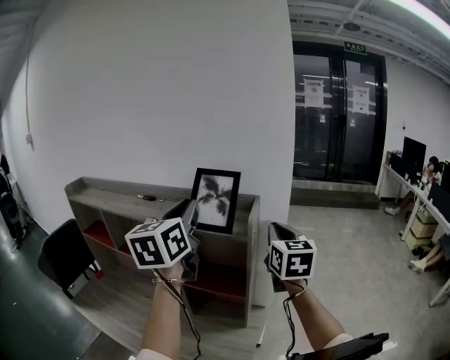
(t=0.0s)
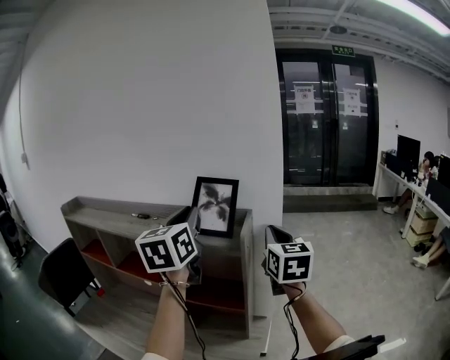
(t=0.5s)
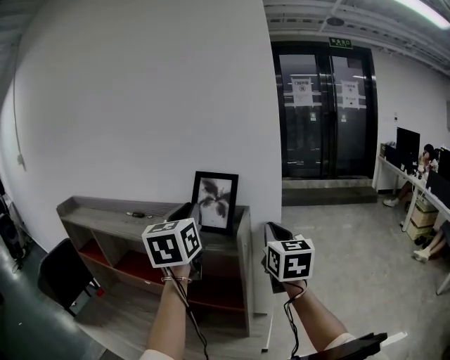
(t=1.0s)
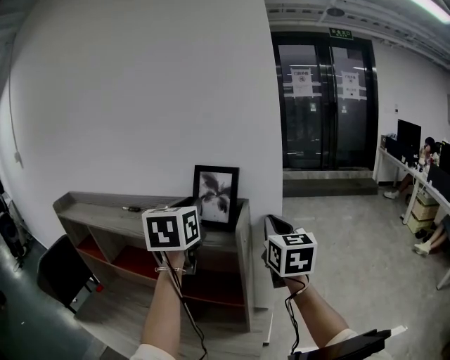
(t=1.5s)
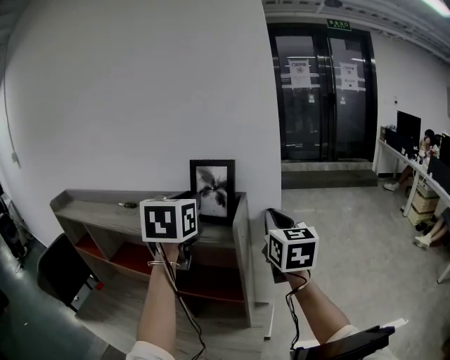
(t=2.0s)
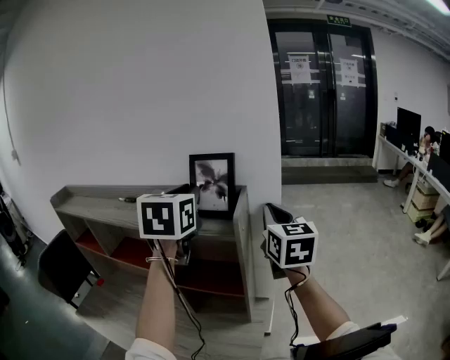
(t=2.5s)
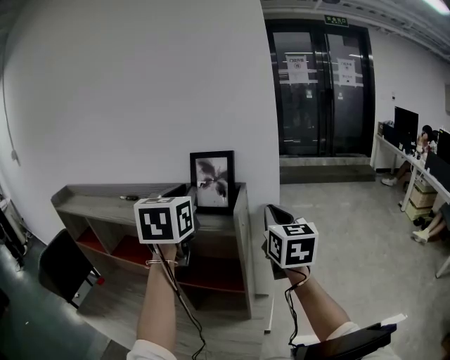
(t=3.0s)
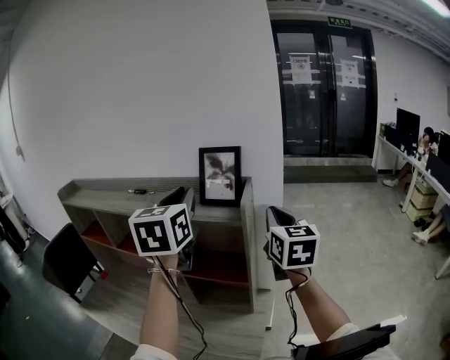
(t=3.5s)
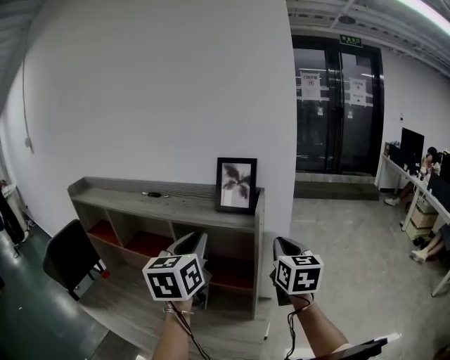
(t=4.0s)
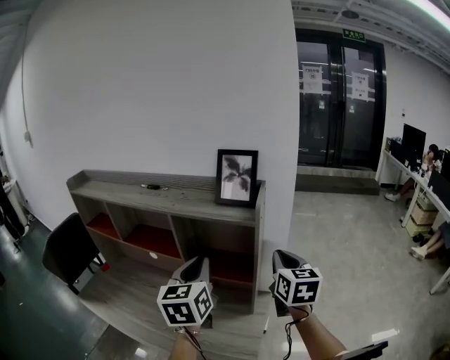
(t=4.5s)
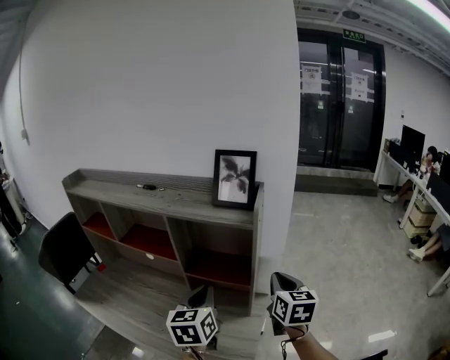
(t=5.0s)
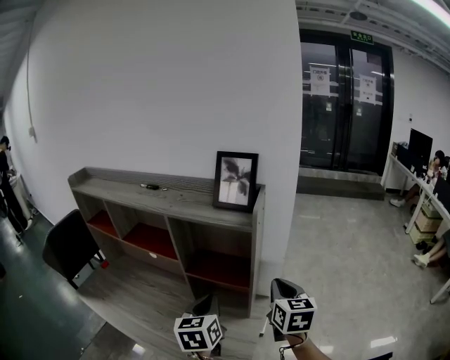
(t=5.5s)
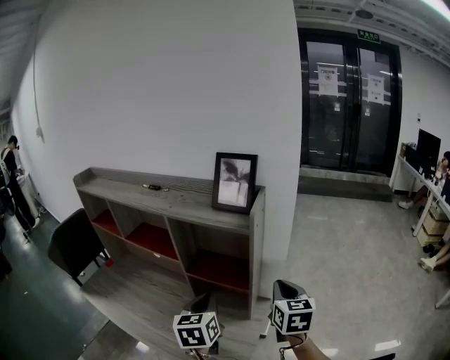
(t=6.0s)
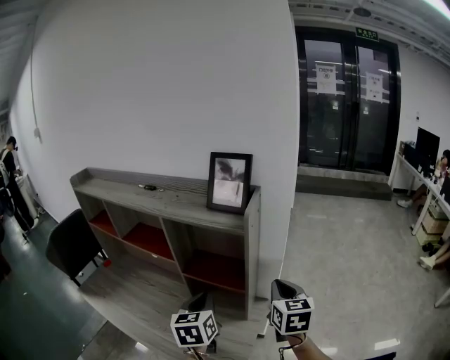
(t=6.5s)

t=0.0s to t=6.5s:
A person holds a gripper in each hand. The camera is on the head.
t=0.0s to t=2.0s: The left gripper shifts about 10 cm forward, and swivels about 20 degrees.
t=2.0s to t=4.5s: The two grippers go approximately 20 cm backward and downward.
t=4.5s to t=6.5s: The left gripper heads downward, covering some 15 cm; the right gripper travels downward by some 10 cm.

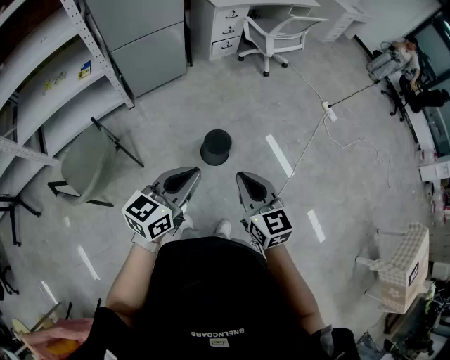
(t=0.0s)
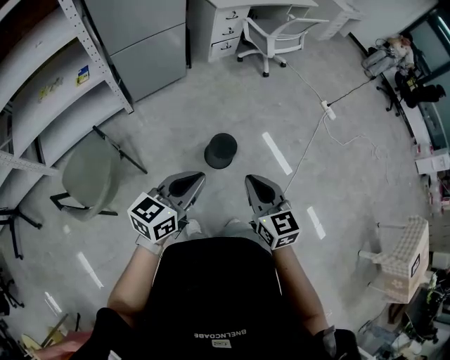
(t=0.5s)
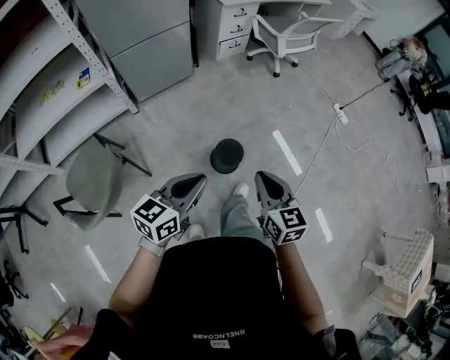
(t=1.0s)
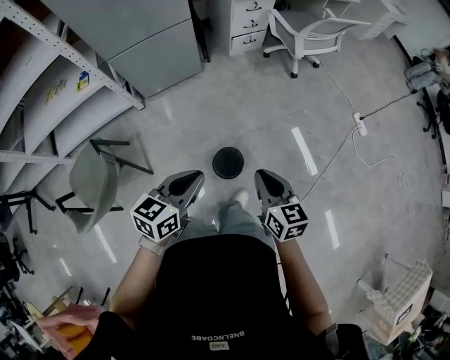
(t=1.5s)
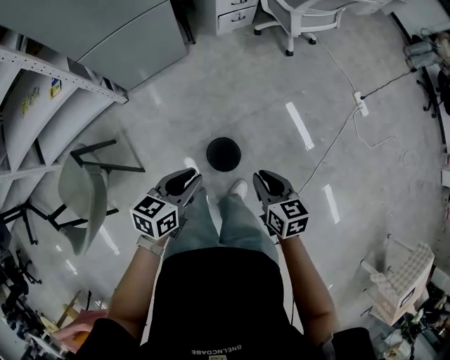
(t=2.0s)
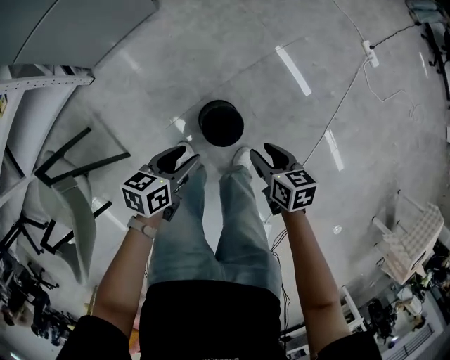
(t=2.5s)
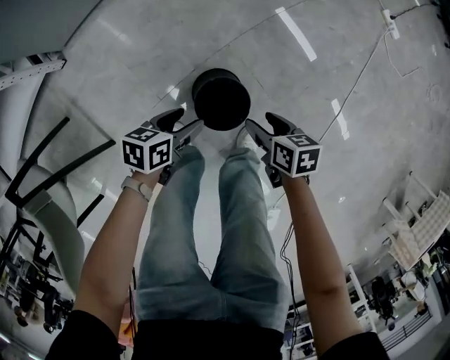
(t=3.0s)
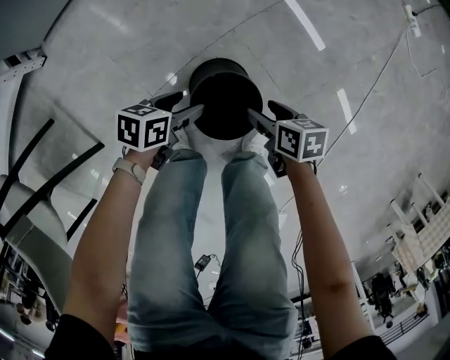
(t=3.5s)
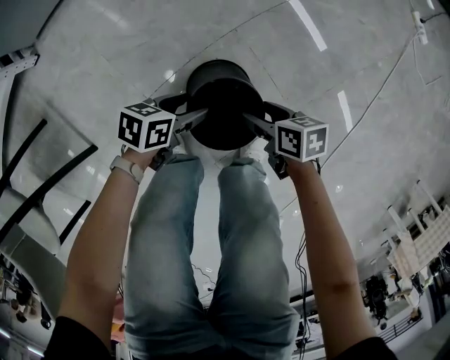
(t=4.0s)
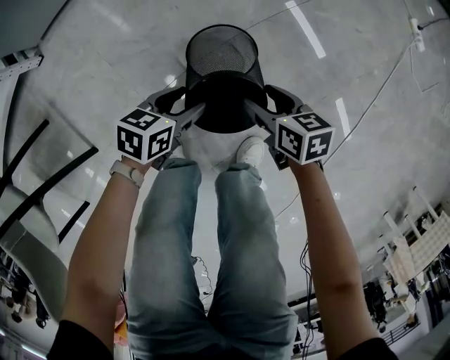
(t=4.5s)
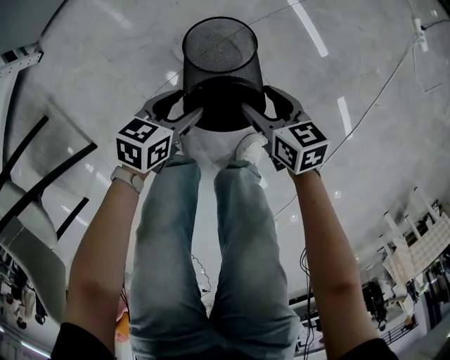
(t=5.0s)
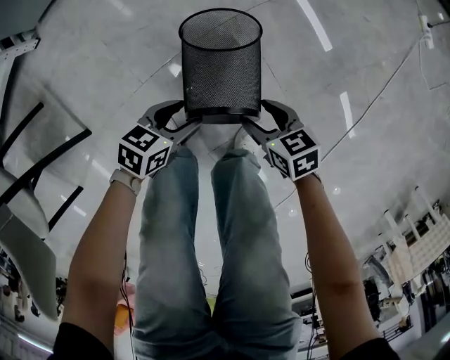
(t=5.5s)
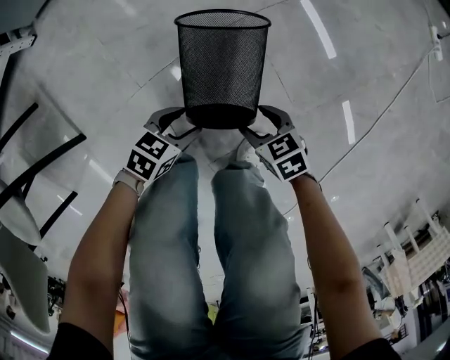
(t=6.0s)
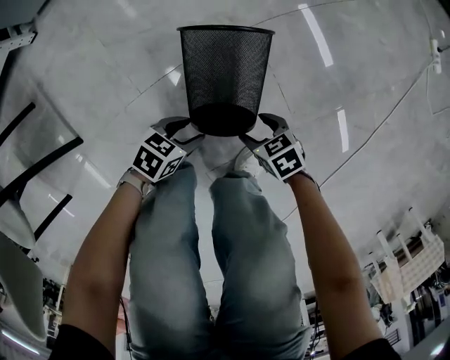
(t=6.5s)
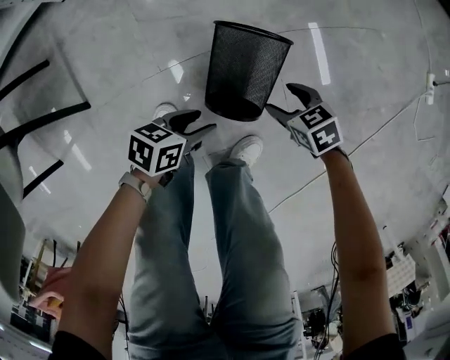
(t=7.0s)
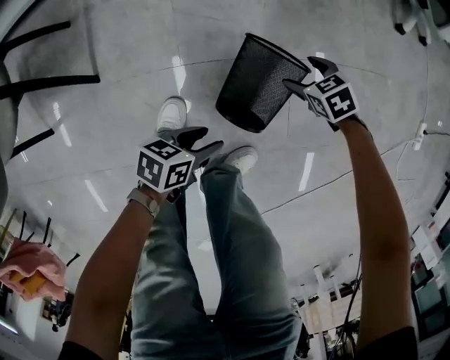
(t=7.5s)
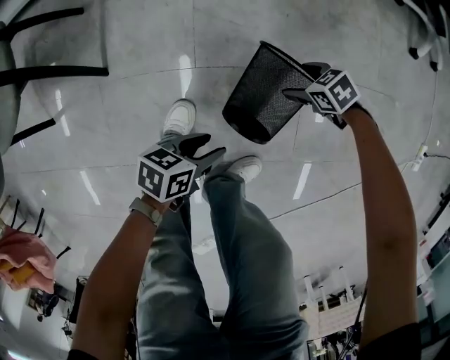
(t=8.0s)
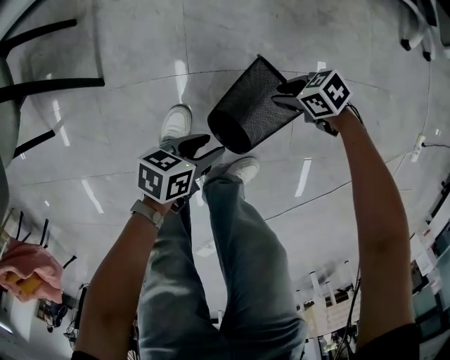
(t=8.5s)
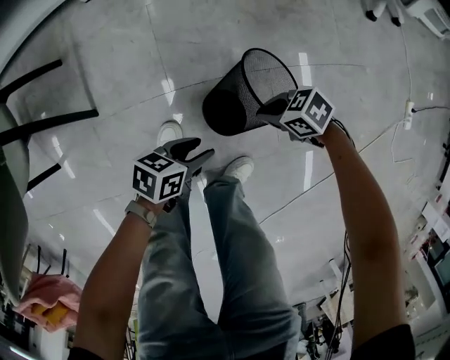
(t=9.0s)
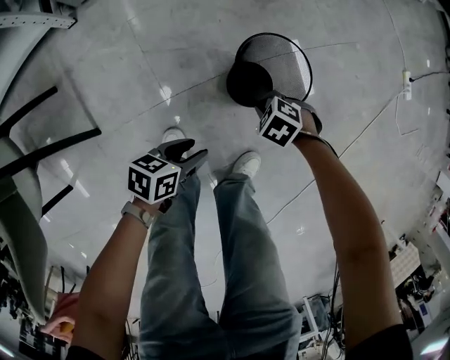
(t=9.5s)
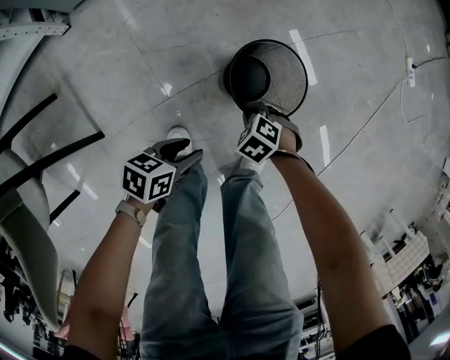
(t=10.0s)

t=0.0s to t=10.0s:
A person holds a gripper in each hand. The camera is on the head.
t=0.0s to t=2.0s: The grippers both shift forward and downward by roughly 35 cm. The left gripper swivels roughly 30 degrees. The right gripper turns by approximately 30 degrees.
t=2.0s to t=4.0s: The grippers both shift downward by some 60 cm. The left gripper changes its angle by some 40 degrees, and opens up. Meanwhile the right gripper changes its angle by approximately 30 degrees, and opens.
t=4.0s to t=6.0s: The left gripper moves about 10 cm. Meanwhile the right gripper goes approximately 5 cm downward, and changes its angle by about 40 degrees.
t=6.0s to t=8.0s: The right gripper reaches roughly 5 cm upward, then returns, and turns by approximately 50 degrees; the left gripper moves upward, approximately 10 cm, and twists some 40 degrees counterclockwise, seen from behind.
t=8.0s to t=10.0s: The left gripper shifts by roughly 5 cm, and rotates roughly 30 degrees. Meanwhile the right gripper changes place by approximately 15 cm, changes its angle by roughly 30 degrees, and closes its fingers.

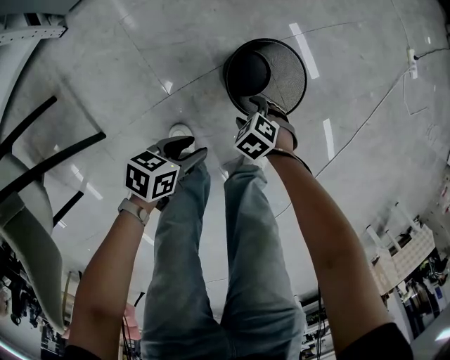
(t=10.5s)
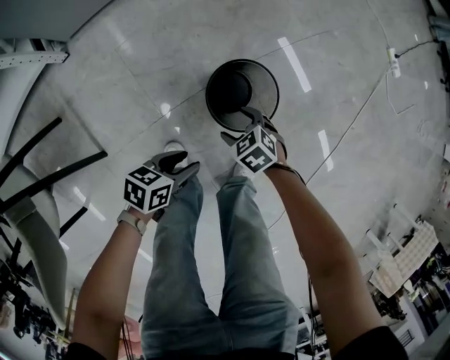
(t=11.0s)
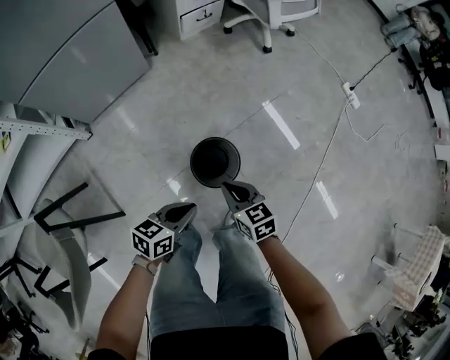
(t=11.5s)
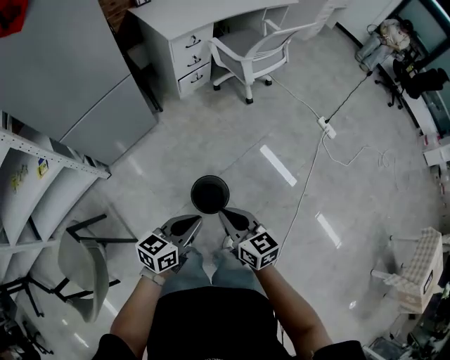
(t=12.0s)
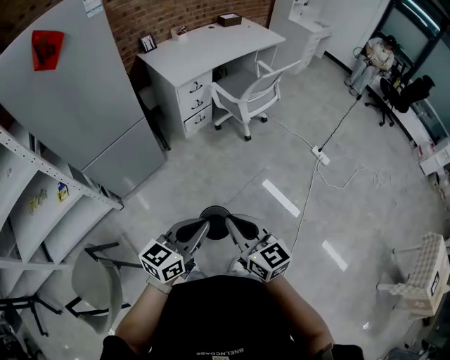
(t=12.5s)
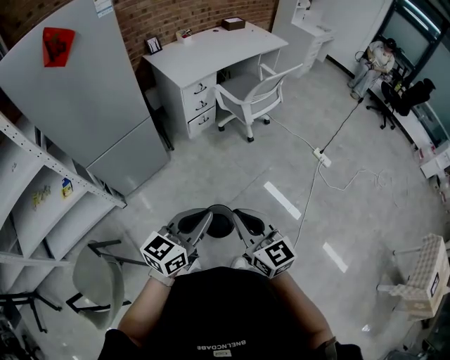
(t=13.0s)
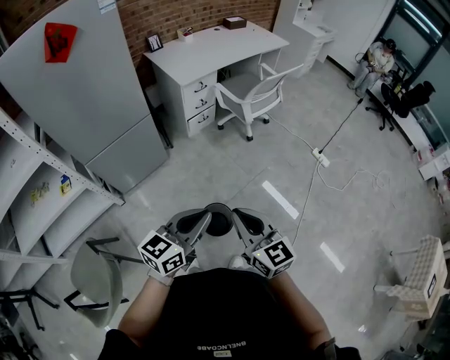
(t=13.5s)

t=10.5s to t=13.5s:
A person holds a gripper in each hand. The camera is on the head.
t=10.5s to t=12.0s: The two grippers go approximately 50 cm upward. The left gripper changes its angle by about 40 degrees, and closes; the right gripper tilts its fingers roughly 60 degrees upward, and closes its fingers.
t=12.0s to t=13.5s: The two grippers go approximately 20 cm upward. The right gripper turns by some 20 degrees.

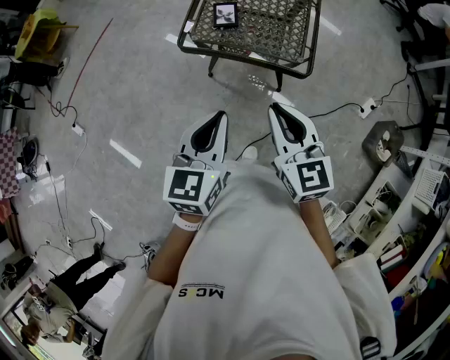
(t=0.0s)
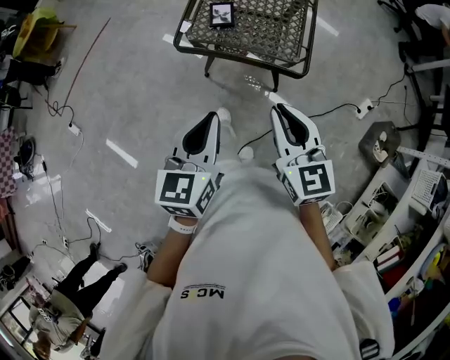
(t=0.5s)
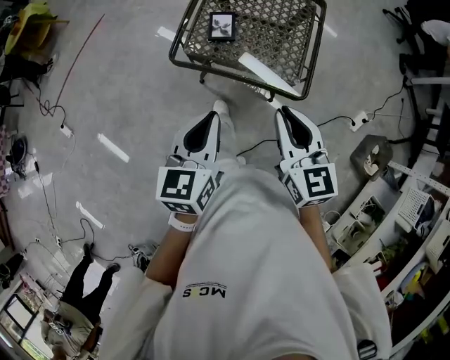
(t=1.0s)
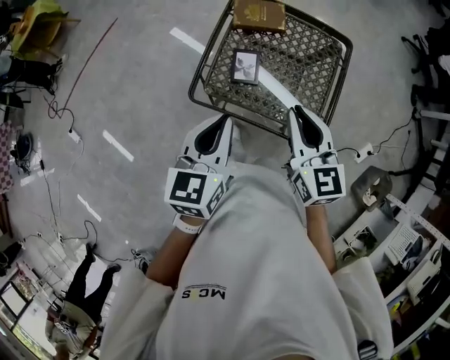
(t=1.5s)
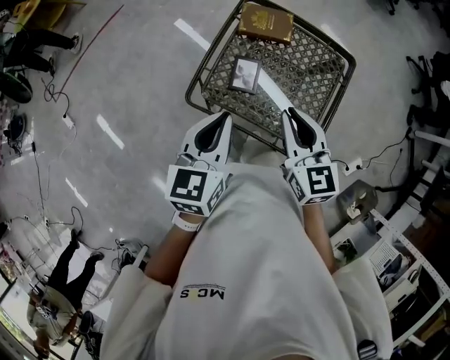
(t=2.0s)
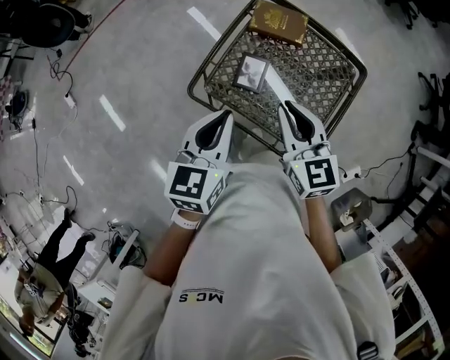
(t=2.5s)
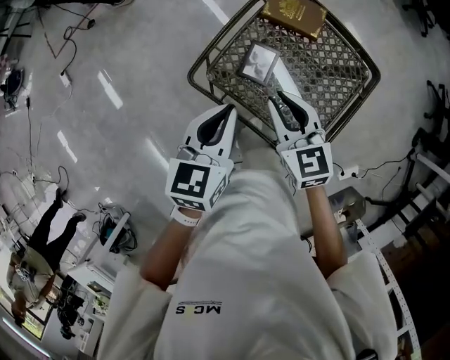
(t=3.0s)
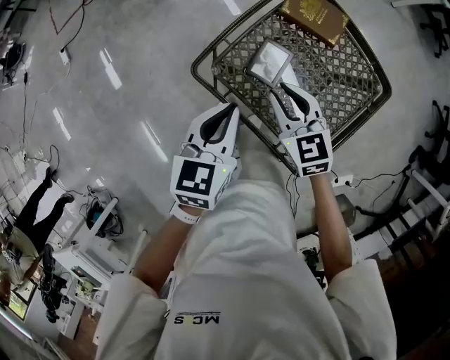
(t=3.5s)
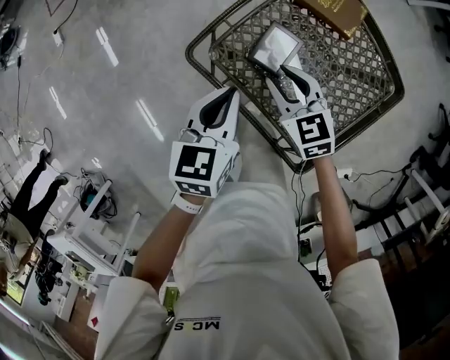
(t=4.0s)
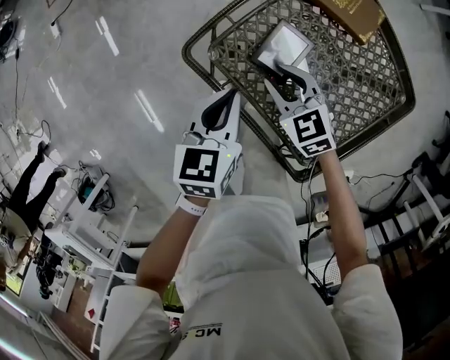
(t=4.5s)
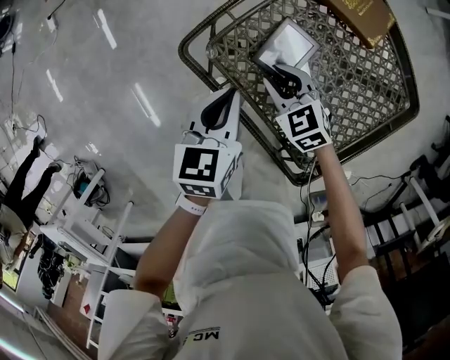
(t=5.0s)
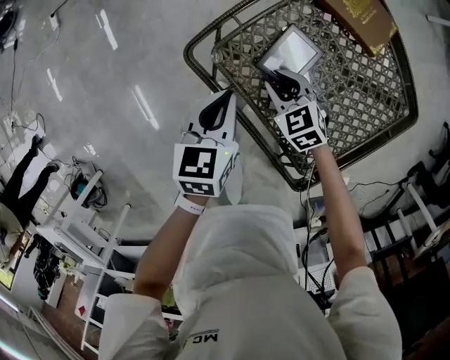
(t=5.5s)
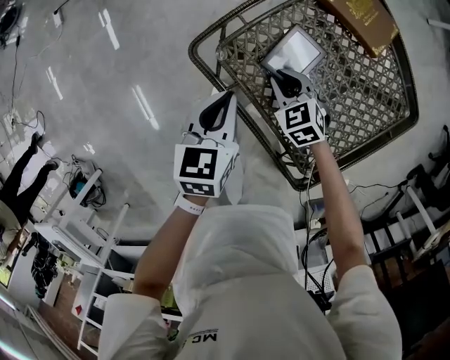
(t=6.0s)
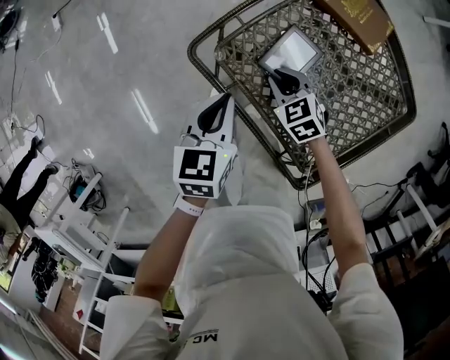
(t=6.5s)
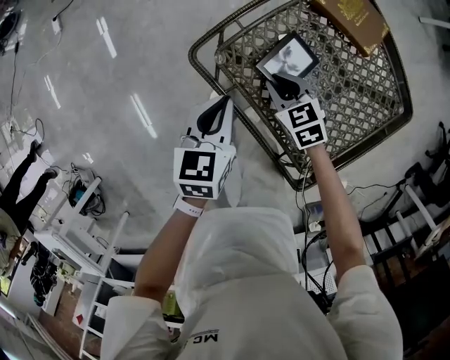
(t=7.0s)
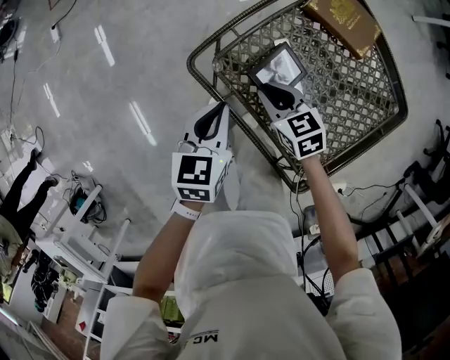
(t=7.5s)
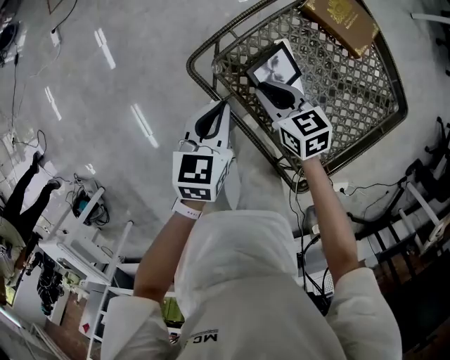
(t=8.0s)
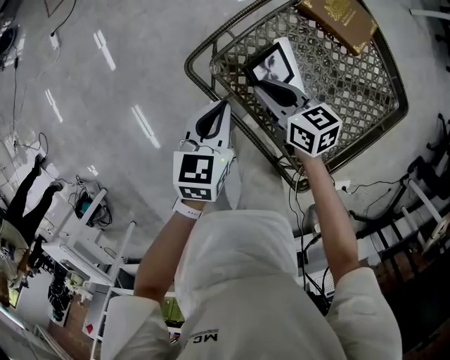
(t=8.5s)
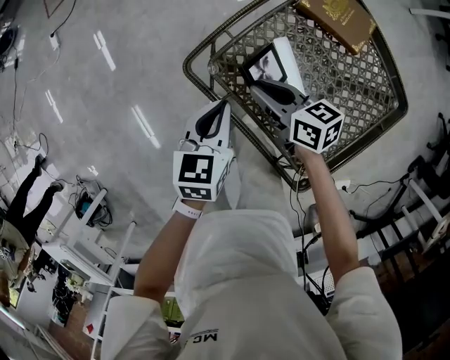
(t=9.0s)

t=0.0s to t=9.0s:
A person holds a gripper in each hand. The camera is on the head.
t=0.0s to t=2.0s: Both grippers travel together forward, roughly 35 cm.
t=2.0s to t=4.5s: The grippers both shift downward by about 25 cm. The left gripper changes its angle by some 30 degrees, while the right gripper turns by about 50 degrees, and opens.
t=4.5s to t=7.0s: The right gripper shifts some 5 cm downward.
t=7.0s to t=9.0s: The right gripper is displaced upward by roughly 10 cm, and changes its angle by some 40 degrees.
